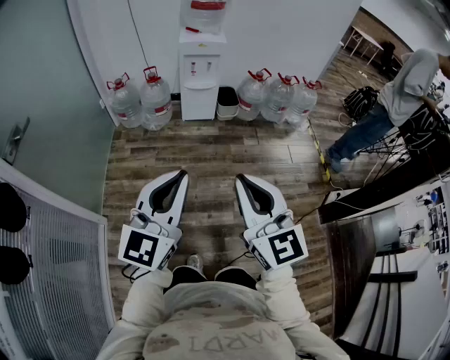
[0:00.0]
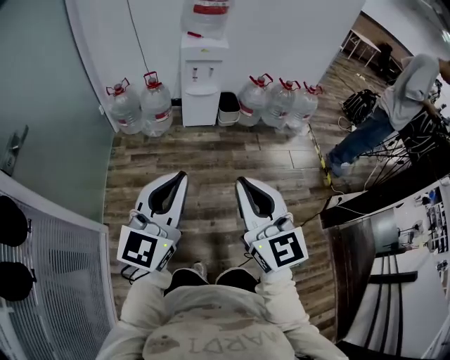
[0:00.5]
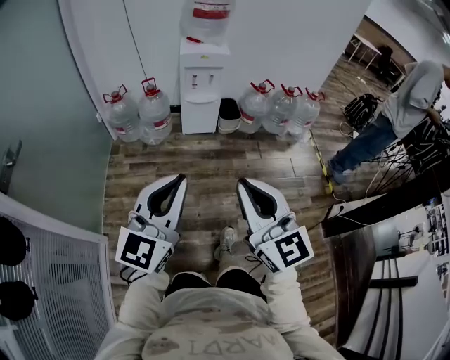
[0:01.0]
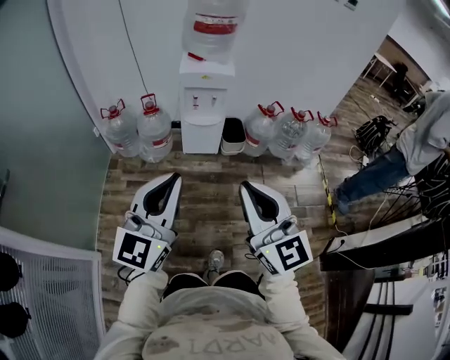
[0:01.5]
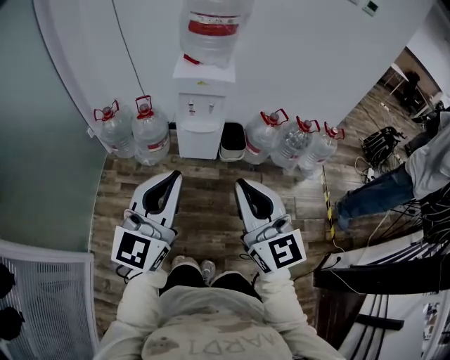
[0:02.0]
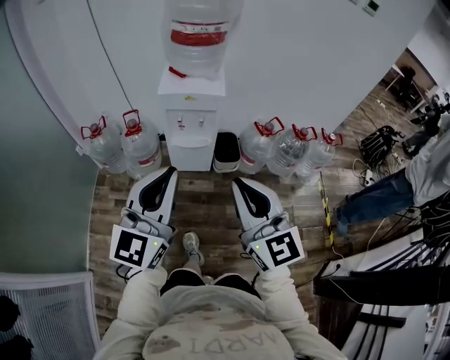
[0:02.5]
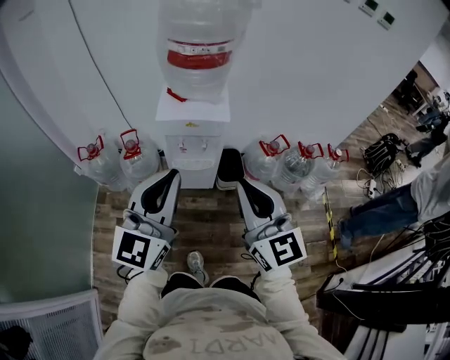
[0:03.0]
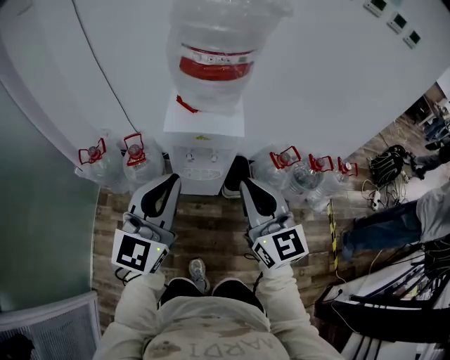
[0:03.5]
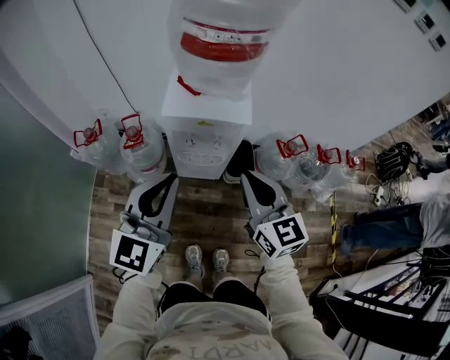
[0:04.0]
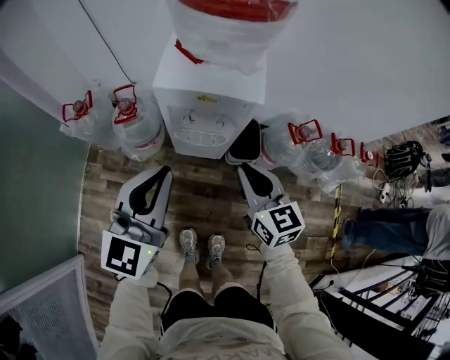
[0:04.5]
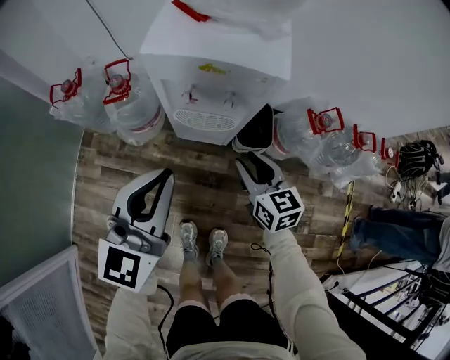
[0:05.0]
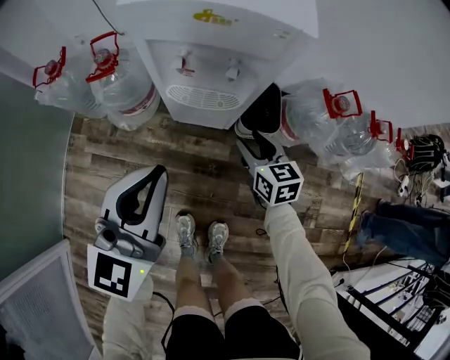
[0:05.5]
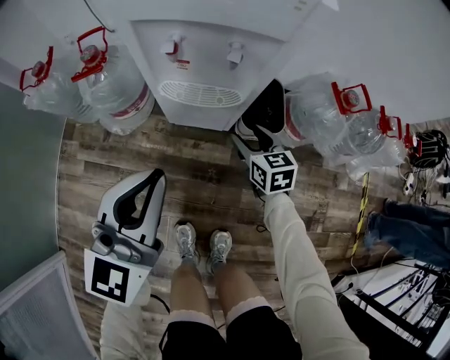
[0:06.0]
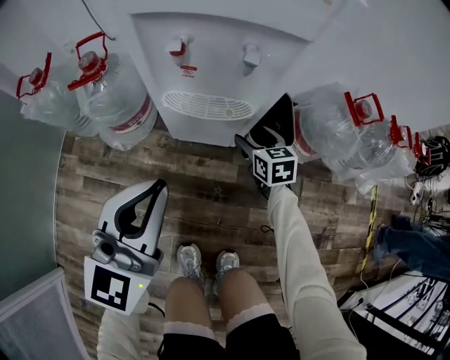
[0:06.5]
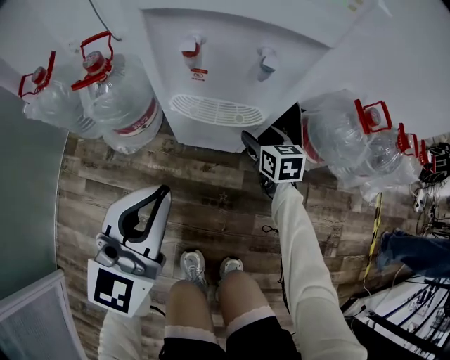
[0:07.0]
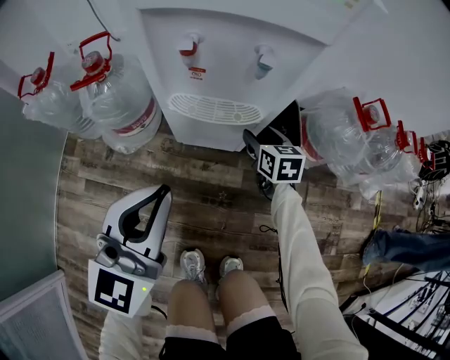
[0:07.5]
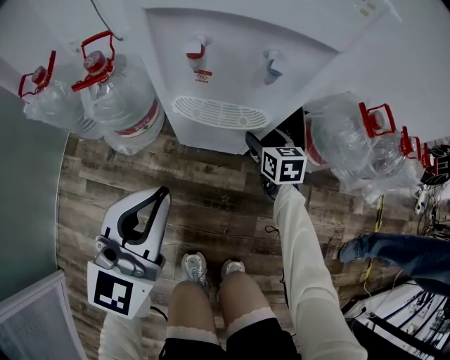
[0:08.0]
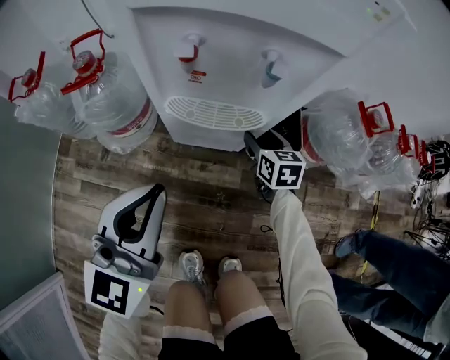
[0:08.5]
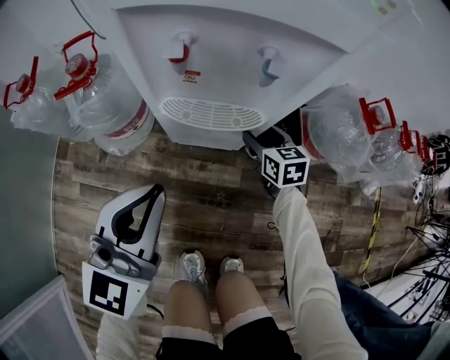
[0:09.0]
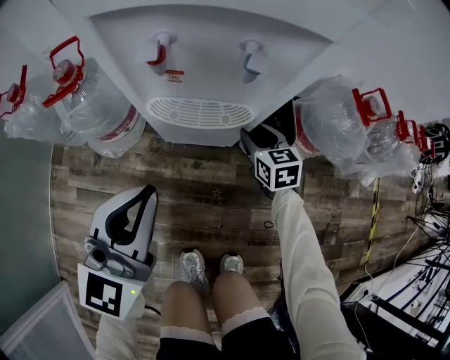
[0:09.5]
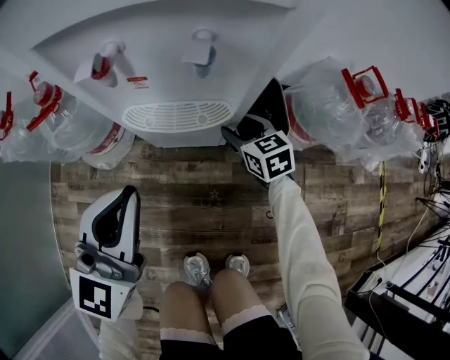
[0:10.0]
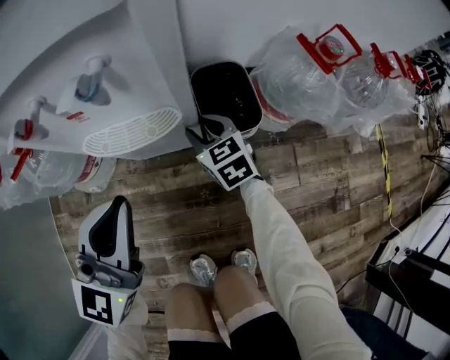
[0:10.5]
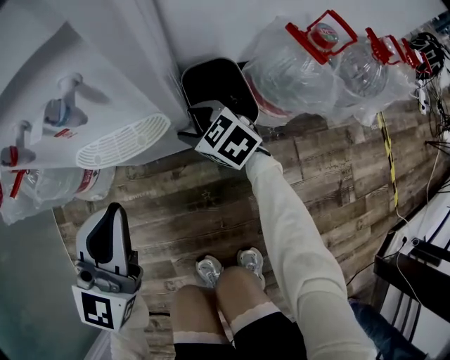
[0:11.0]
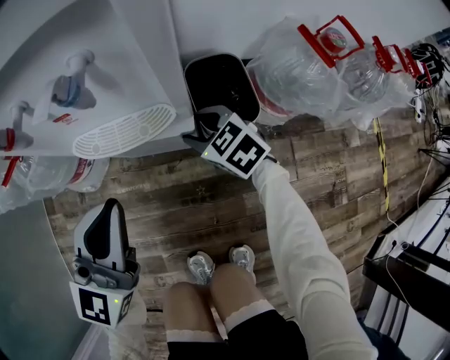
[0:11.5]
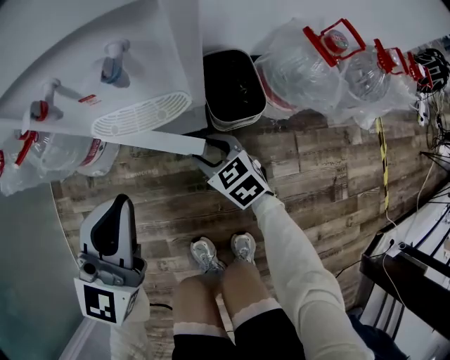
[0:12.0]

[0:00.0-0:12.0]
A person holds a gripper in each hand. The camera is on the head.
0:00.0 to 0:02.0: The two grippers travel together, forward, approximately 40 cm.
0:02.0 to 0:04.0: Both grippers travel together forward, some 40 cm.
0:04.0 to 0:06.0: The left gripper shifts roughly 35 cm downward. Meanwhile the right gripper goes about 50 cm downward, changes its angle by about 30 degrees, and opens.
0:06.0 to 0:08.0: The right gripper shifts approximately 15 cm forward and downward, while the left gripper moves downward, about 10 cm.
0:08.0 to 0:10.0: The left gripper heads forward, covering about 5 cm.
0:10.0 to 0:12.0: The right gripper moves backward, approximately 10 cm. Meanwhile the left gripper goes some 5 cm to the right.

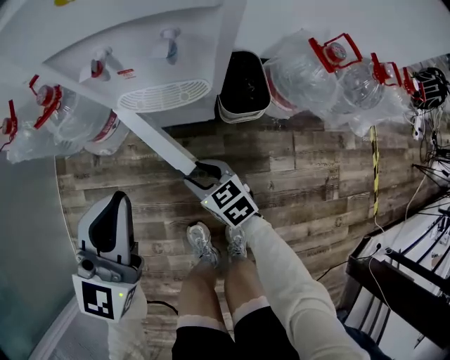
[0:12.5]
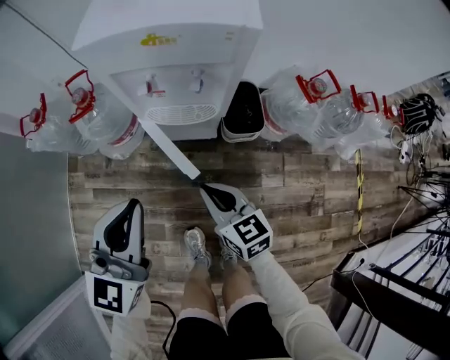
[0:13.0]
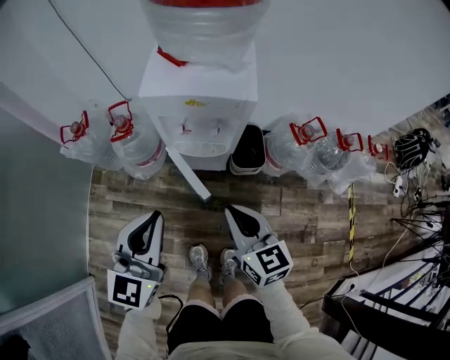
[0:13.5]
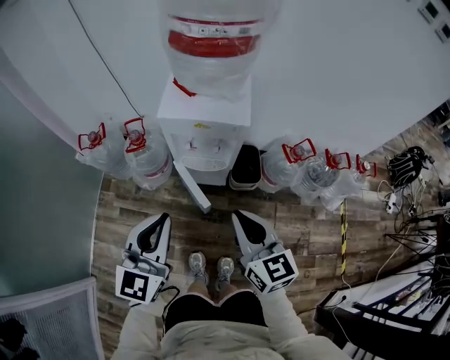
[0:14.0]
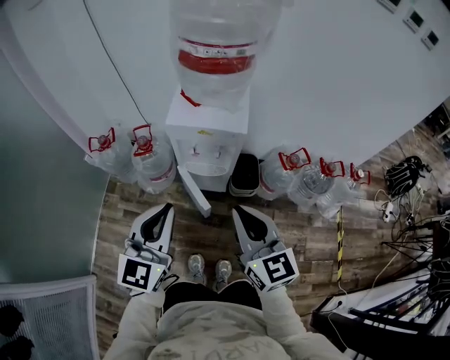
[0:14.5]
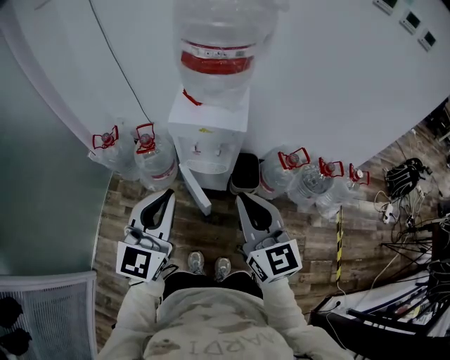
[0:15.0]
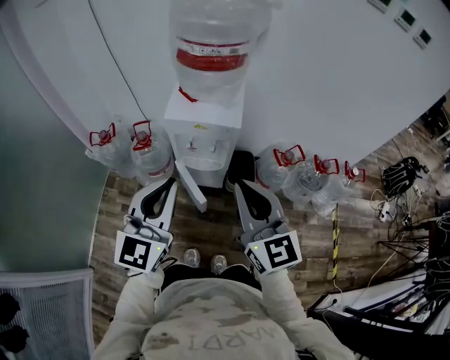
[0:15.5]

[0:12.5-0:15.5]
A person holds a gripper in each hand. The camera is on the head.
0:12.5 to 0:14.0: The right gripper heads upward, covering roughly 50 cm, turns by approximately 30 degrees, and closes. The left gripper travels upward by some 30 cm.
0:14.0 to 0:15.5: The grippers both shift upward by roughly 15 cm.

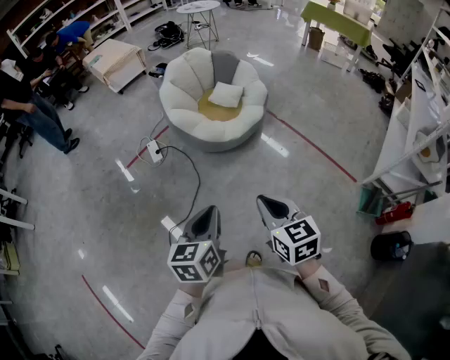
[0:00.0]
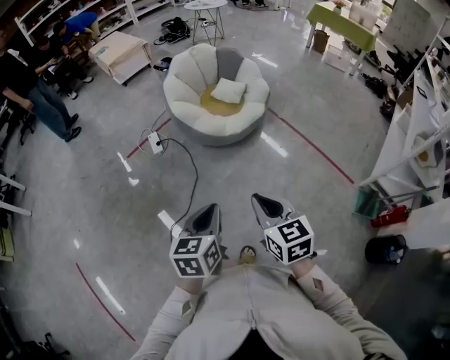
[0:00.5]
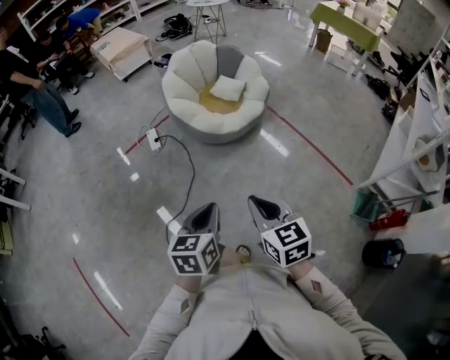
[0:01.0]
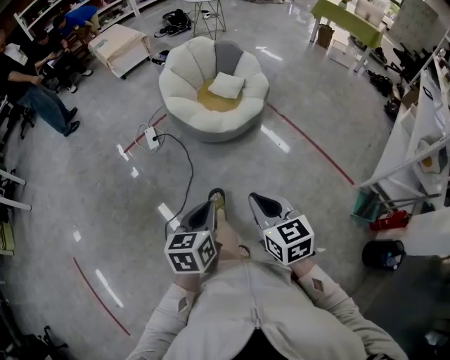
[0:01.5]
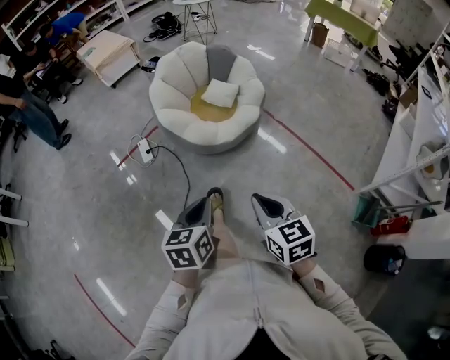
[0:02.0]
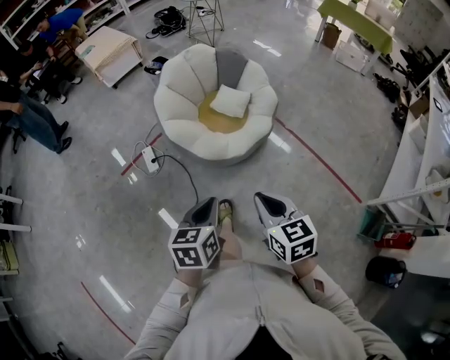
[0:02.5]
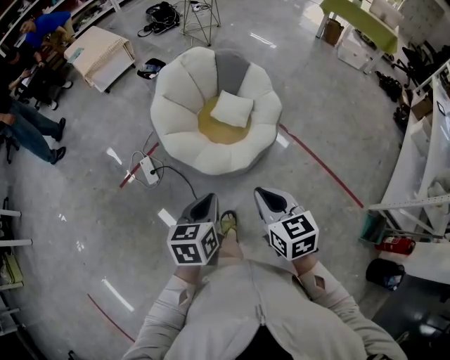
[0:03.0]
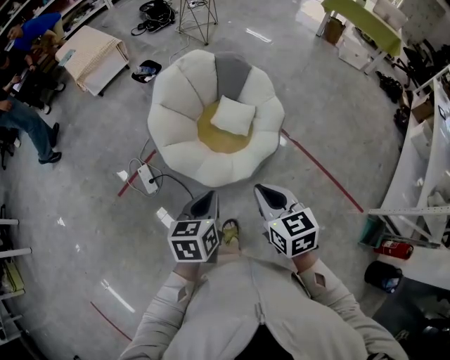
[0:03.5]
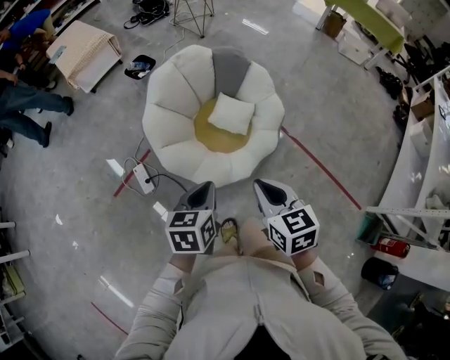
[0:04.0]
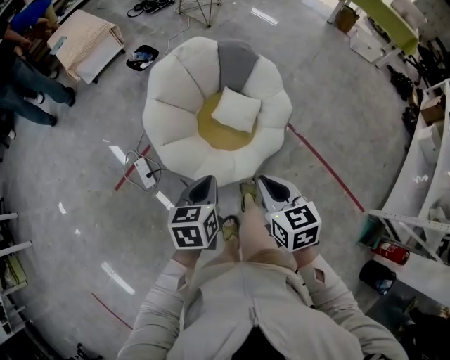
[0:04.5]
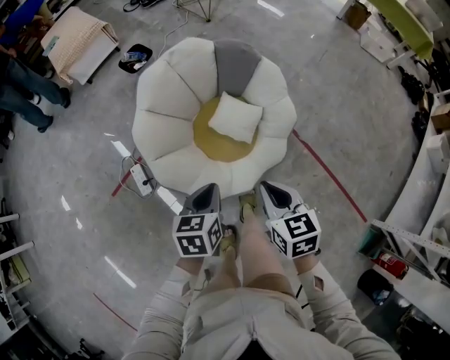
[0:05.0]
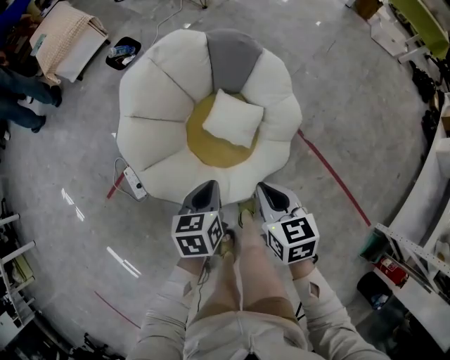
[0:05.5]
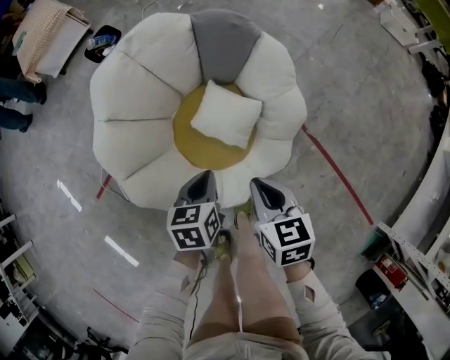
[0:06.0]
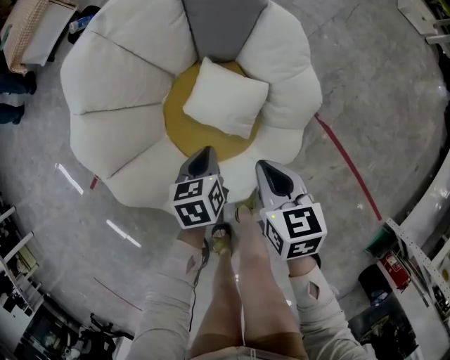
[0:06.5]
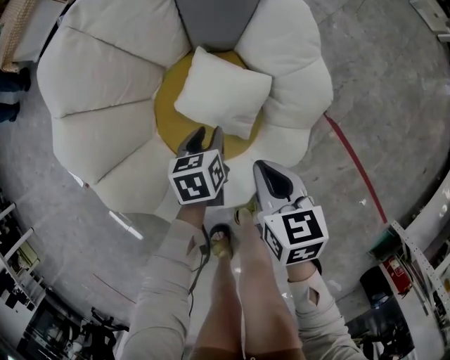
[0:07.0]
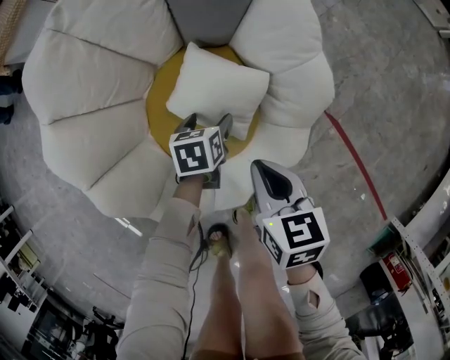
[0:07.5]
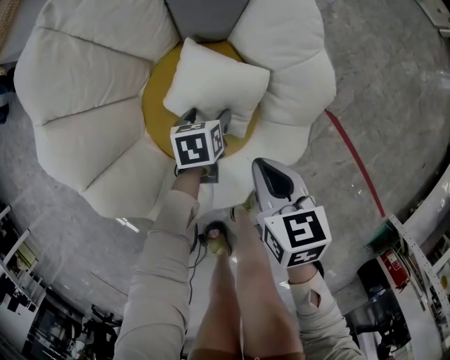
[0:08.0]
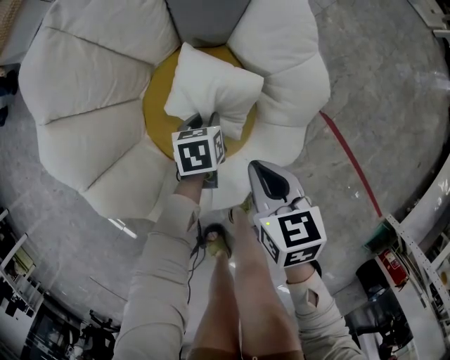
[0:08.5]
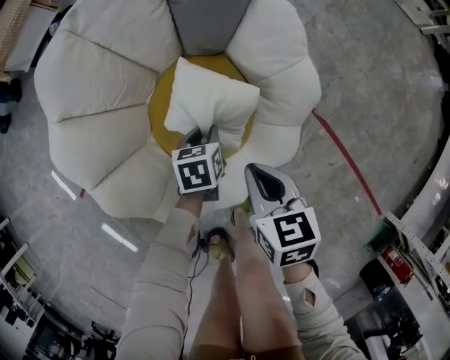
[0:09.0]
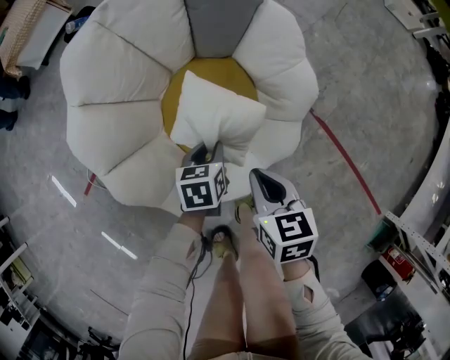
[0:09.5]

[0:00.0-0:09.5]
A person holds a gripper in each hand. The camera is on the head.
0:00.0 to 0:02.0: The right gripper goes approximately 10 cm forward and to the right. The left gripper shifts some 10 cm forward.
0:02.0 to 0:04.0: Both grippers are carried forward, about 50 cm.
0:04.0 to 0:05.5: Both grippers travel together forward, downward and to the right, about 25 cm.
0:05.5 to 0:07.5: Both grippers move downward and forward, about 35 cm. The left gripper opens.
0:07.5 to 0:09.5: The right gripper moves backward and upward, some 10 cm. Meanwhile the left gripper moves upward and backward, about 15 cm, and closes.

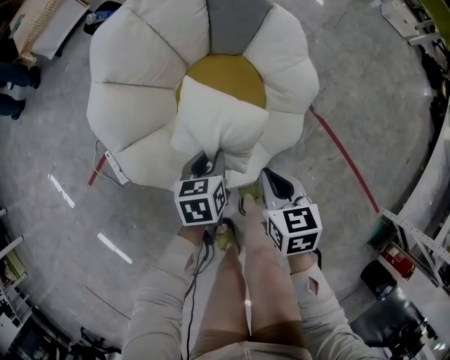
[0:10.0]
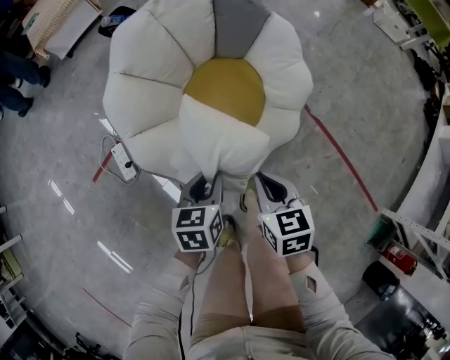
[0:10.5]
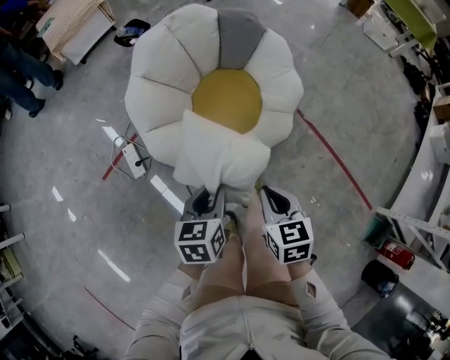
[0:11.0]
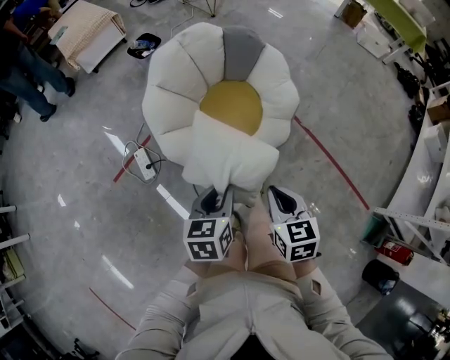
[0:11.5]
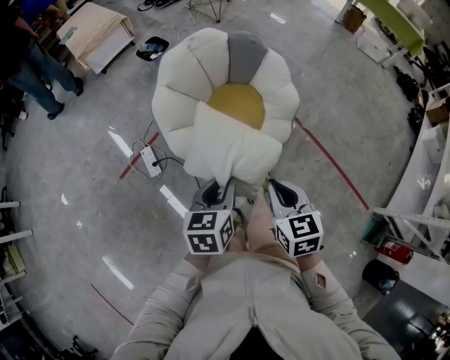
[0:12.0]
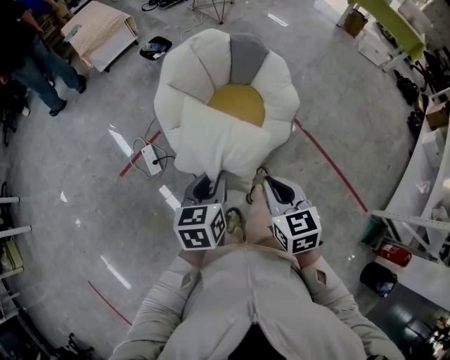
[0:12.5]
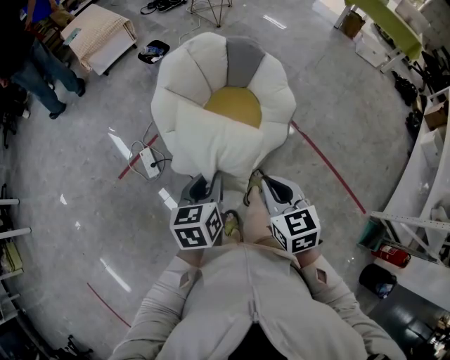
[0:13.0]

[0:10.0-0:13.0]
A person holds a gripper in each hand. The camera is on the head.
0:10.0 to 0:11.5: Both grippers travel together upward and backward, roughly 30 cm.
0:11.5 to 0:13.0: The grippers both shift upward by about 10 cm.
